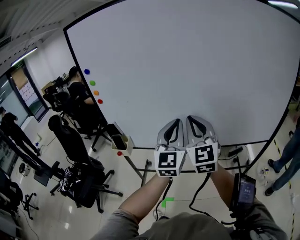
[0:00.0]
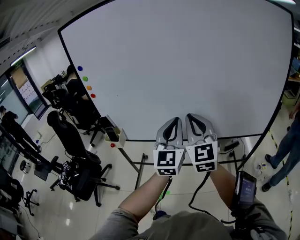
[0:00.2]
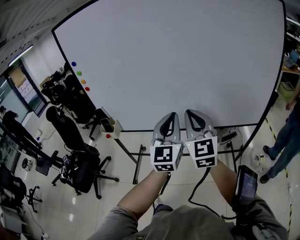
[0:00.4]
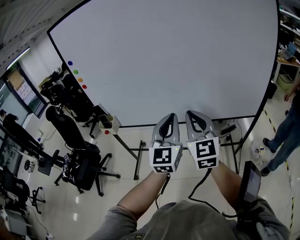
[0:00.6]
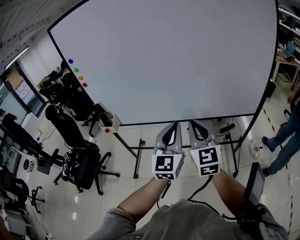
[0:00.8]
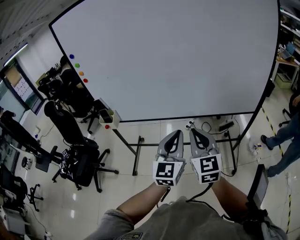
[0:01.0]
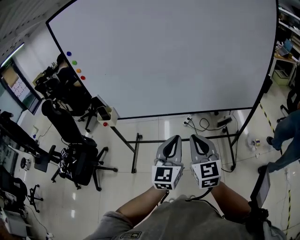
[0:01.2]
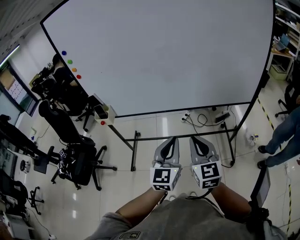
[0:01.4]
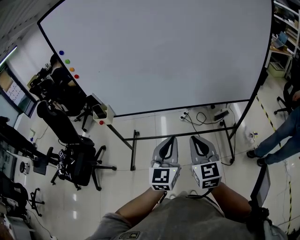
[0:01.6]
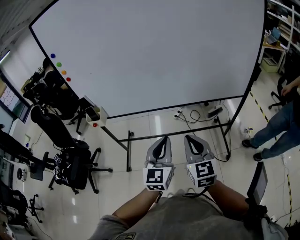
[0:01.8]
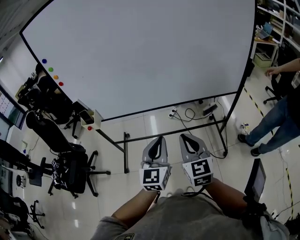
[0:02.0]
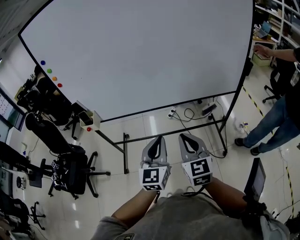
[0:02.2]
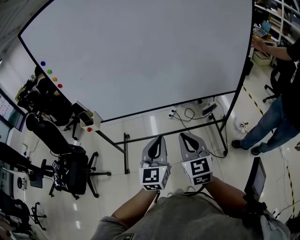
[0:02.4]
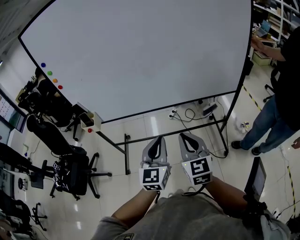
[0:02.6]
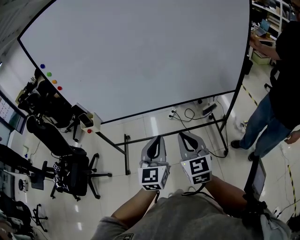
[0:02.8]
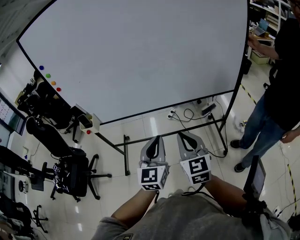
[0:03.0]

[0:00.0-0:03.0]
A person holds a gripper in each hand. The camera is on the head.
0.0 to 1.6 s: Both grippers move backward, downward and to the right, roughly 25 cm. The right gripper rotates roughly 20 degrees.
1.6 to 3.0 s: The grippers move only a little.

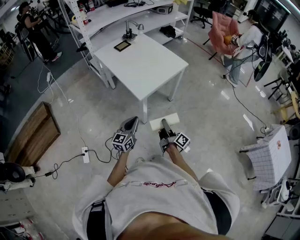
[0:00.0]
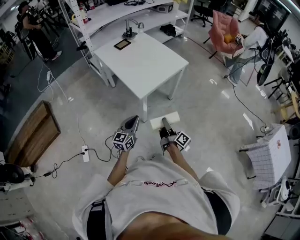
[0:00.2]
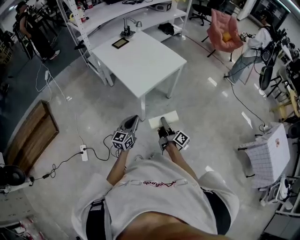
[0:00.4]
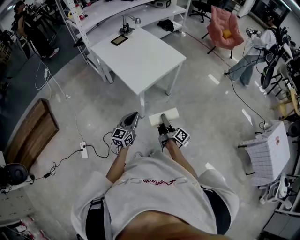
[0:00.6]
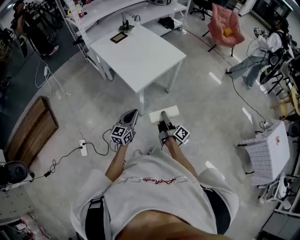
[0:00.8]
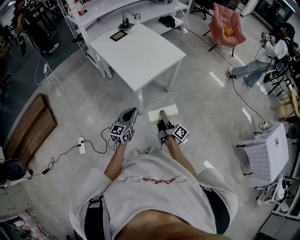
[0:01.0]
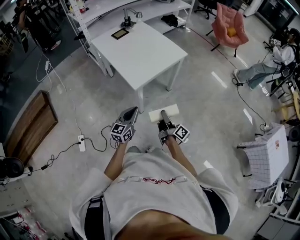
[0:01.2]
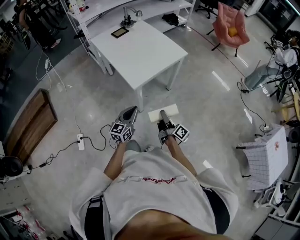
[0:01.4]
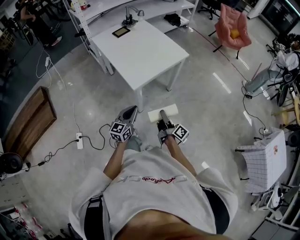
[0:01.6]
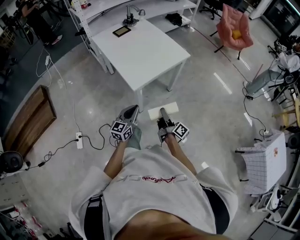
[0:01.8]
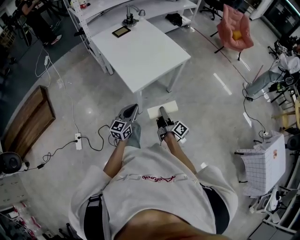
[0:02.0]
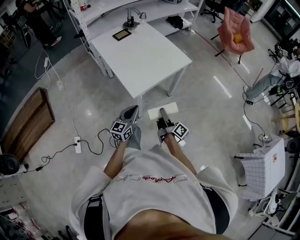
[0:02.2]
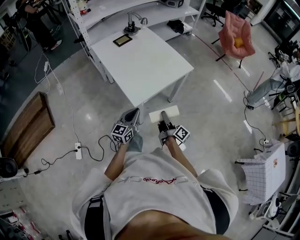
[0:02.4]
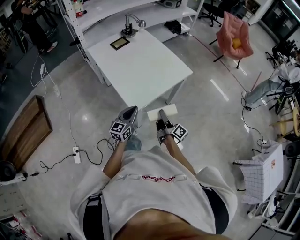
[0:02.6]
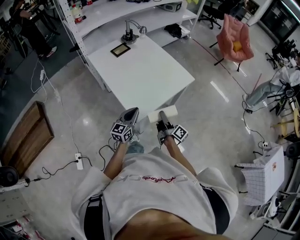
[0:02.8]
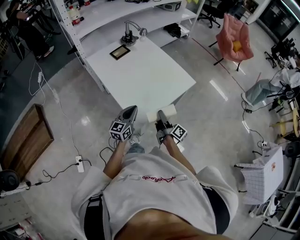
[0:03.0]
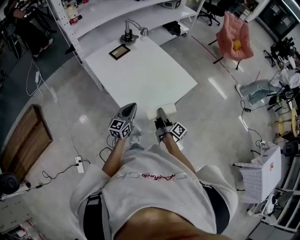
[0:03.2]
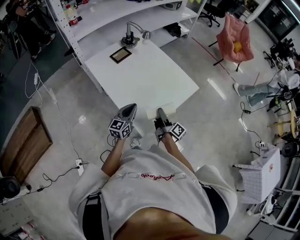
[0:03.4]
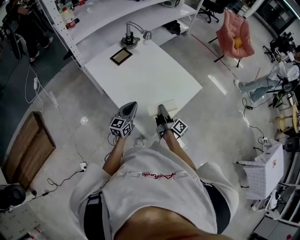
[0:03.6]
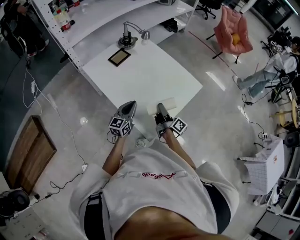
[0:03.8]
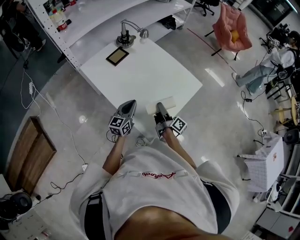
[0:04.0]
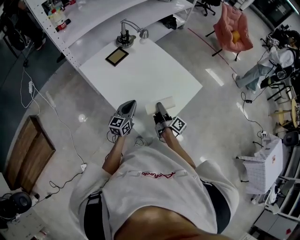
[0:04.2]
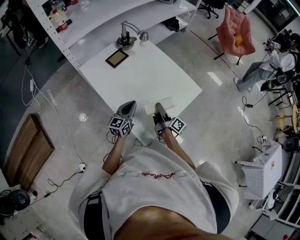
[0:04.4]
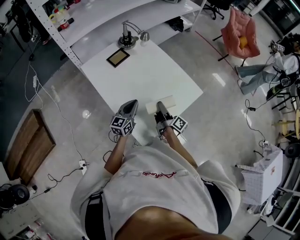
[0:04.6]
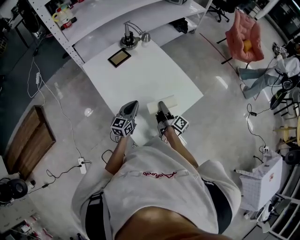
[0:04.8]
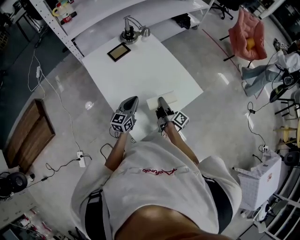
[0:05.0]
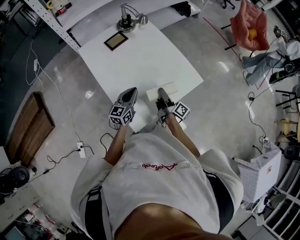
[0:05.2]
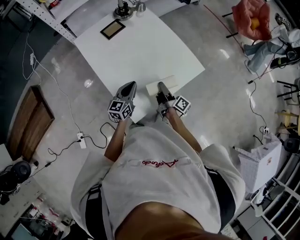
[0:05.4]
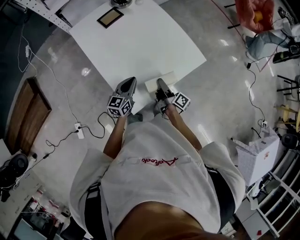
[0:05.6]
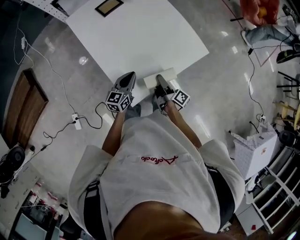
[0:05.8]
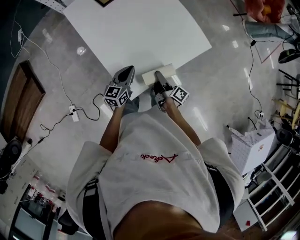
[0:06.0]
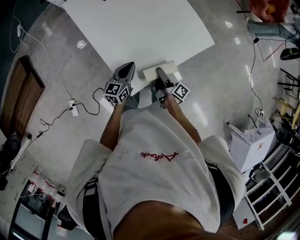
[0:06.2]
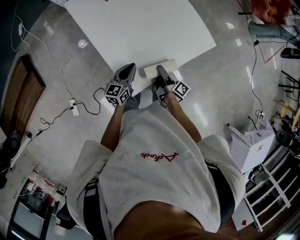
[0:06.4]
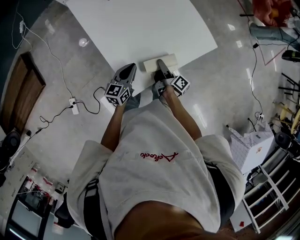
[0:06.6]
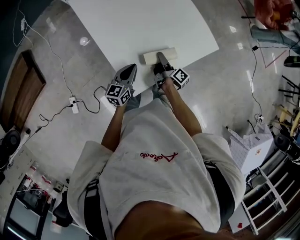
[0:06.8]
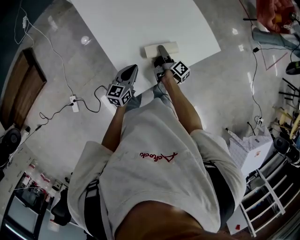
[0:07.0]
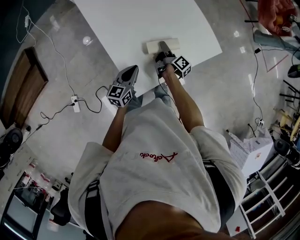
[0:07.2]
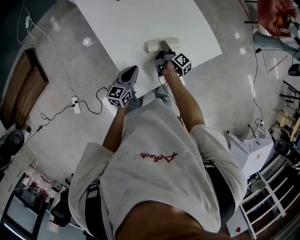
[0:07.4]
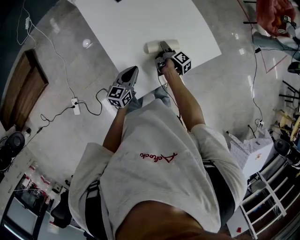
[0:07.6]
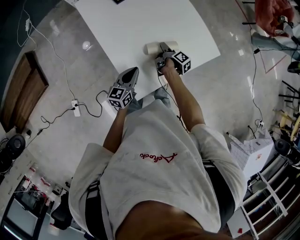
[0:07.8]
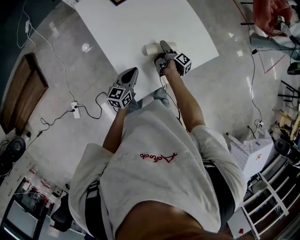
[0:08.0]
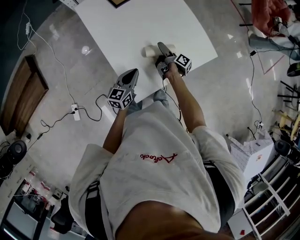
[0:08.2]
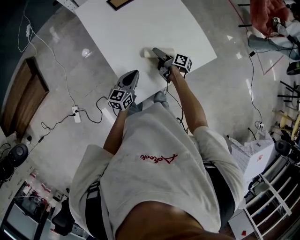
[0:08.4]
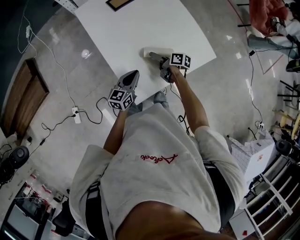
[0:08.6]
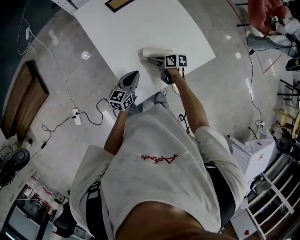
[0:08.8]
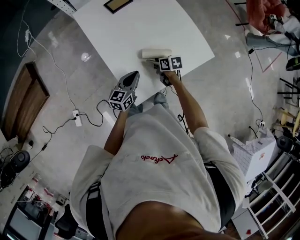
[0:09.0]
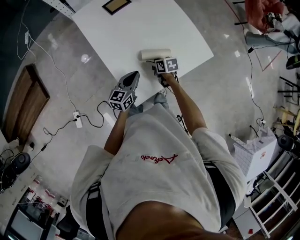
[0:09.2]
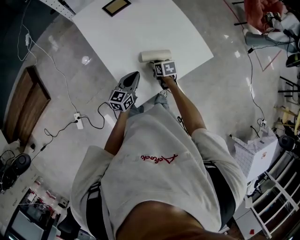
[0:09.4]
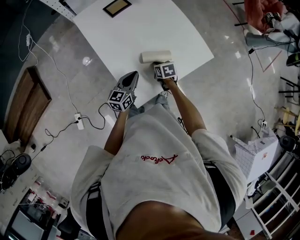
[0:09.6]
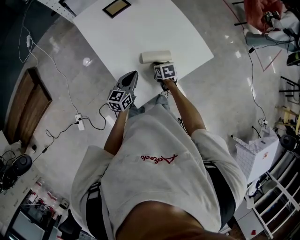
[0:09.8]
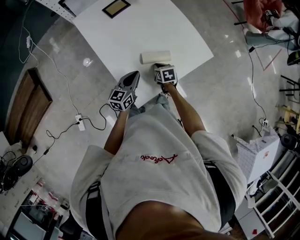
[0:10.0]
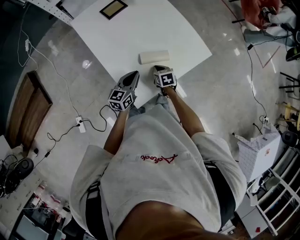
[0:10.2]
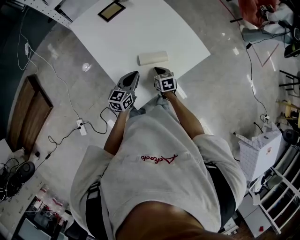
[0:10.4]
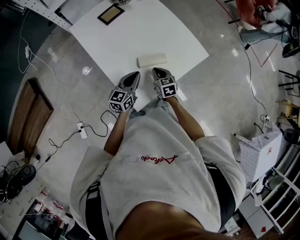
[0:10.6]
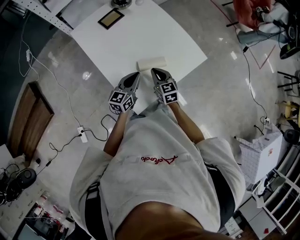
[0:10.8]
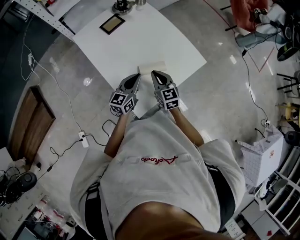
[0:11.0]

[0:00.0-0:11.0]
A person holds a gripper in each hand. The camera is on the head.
0.0 to 1.6 s: The right gripper shifts by some 5 cm, while the left gripper ends up approximately 5 cm from where it was.
1.6 to 3.2 s: Both grippers move forward, about 30 cm.
3.2 to 4.8 s: Both grippers move forward, some 15 cm.
4.8 to 6.2 s: The grippers both shift backward and downward by some 10 cm.
6.2 to 7.8 s: The right gripper is displaced forward by approximately 15 cm, and swivels roughly 20 degrees.
7.8 to 9.4 s: The right gripper ends up some 5 cm from where it was, rotates around the line of its fingers by some 70 degrees, counterclockwise from behind, and opens and closes again.
9.4 to 11.0 s: The right gripper travels upward by approximately 15 cm, and points its fingers some 30 degrees further upward. Meanwhile the left gripper travels upward by roughly 5 cm.

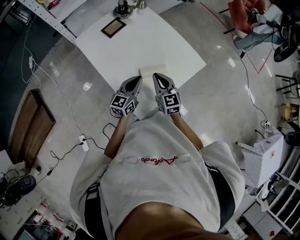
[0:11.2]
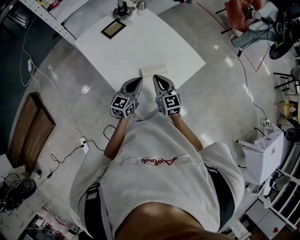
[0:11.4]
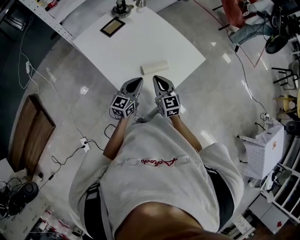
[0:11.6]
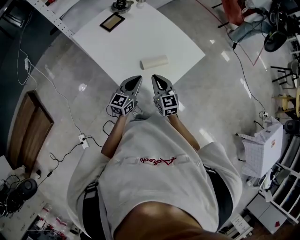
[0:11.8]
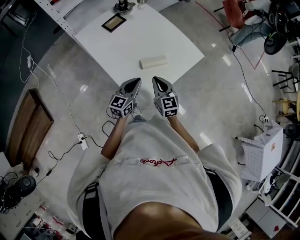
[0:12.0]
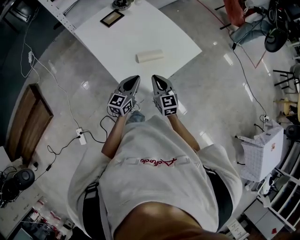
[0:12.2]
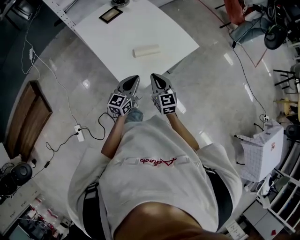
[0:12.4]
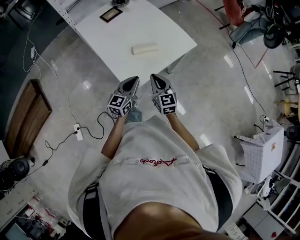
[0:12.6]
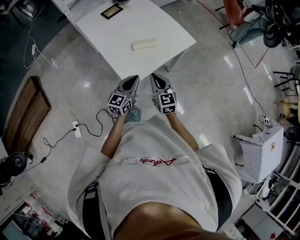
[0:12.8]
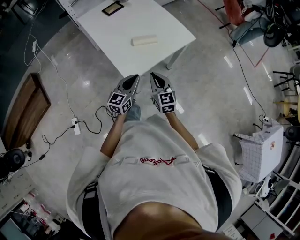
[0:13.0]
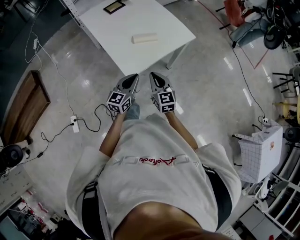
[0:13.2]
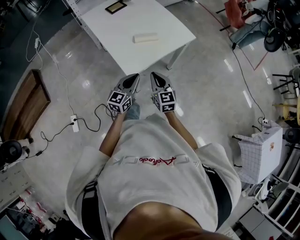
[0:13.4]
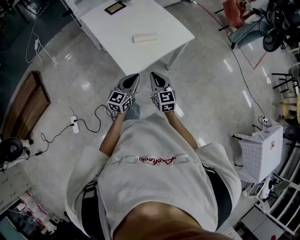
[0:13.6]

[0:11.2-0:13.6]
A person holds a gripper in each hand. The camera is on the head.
11.2 to 12.4 s: The two grippers go approximately 15 cm backward.
12.4 to 13.6 s: The grippers both shift backward by about 10 cm.

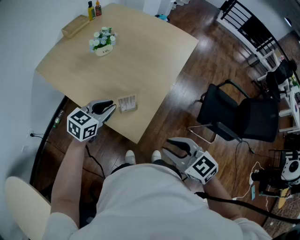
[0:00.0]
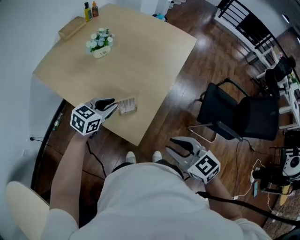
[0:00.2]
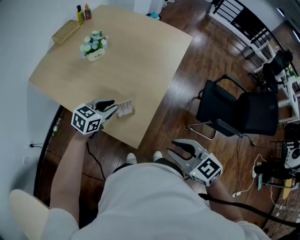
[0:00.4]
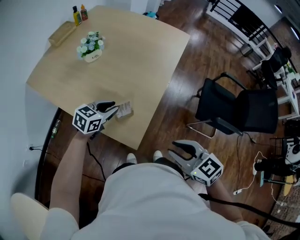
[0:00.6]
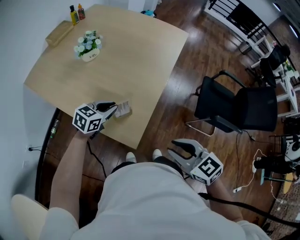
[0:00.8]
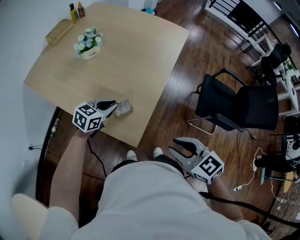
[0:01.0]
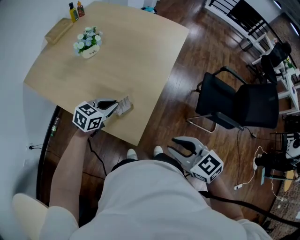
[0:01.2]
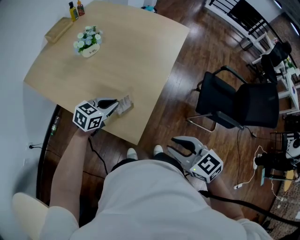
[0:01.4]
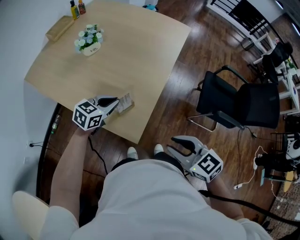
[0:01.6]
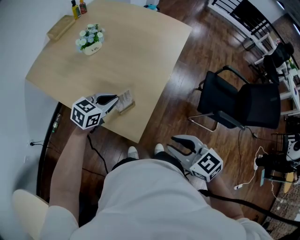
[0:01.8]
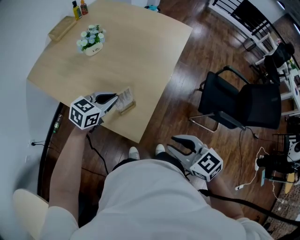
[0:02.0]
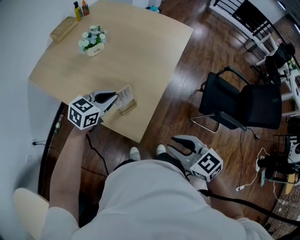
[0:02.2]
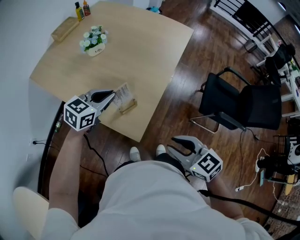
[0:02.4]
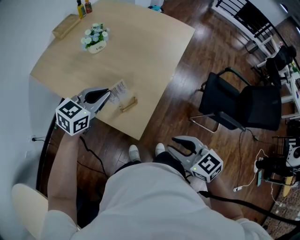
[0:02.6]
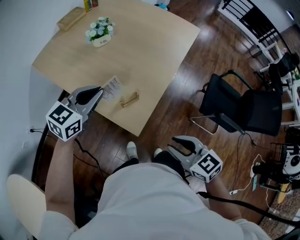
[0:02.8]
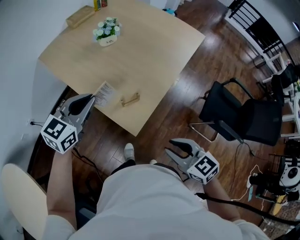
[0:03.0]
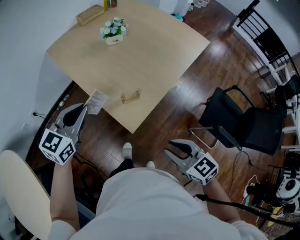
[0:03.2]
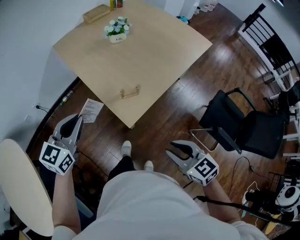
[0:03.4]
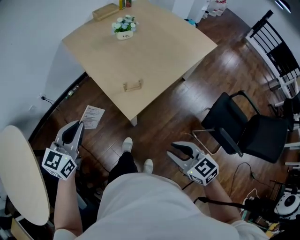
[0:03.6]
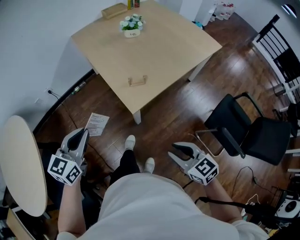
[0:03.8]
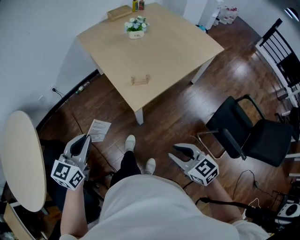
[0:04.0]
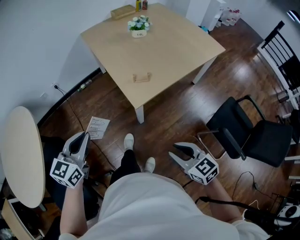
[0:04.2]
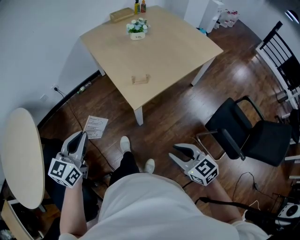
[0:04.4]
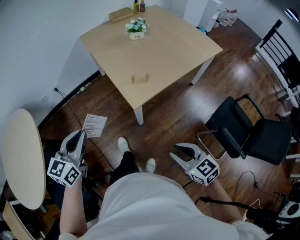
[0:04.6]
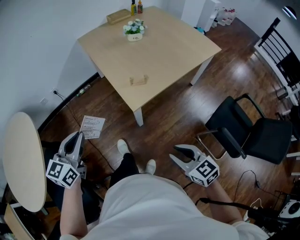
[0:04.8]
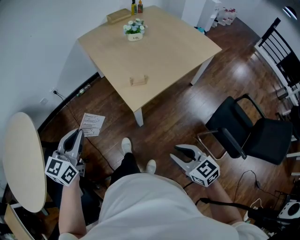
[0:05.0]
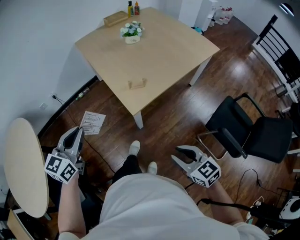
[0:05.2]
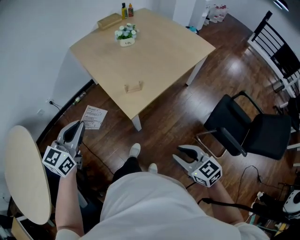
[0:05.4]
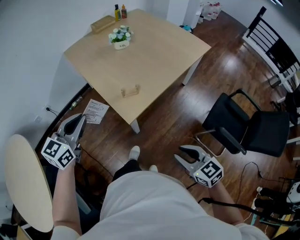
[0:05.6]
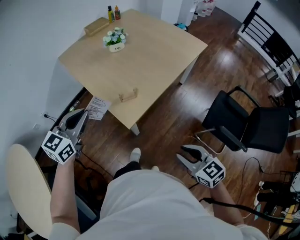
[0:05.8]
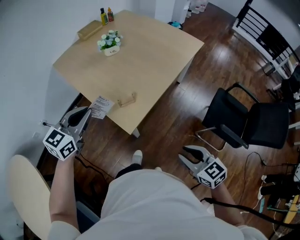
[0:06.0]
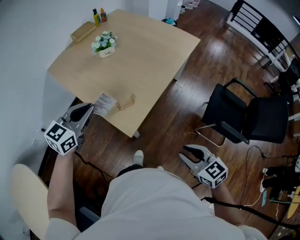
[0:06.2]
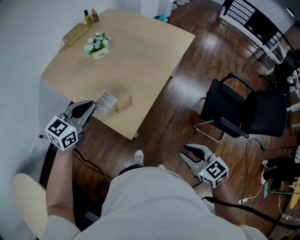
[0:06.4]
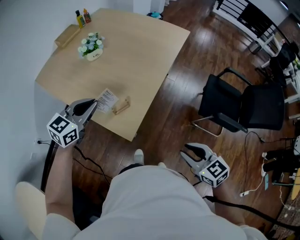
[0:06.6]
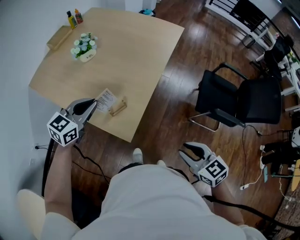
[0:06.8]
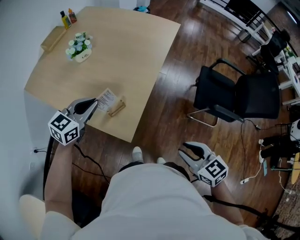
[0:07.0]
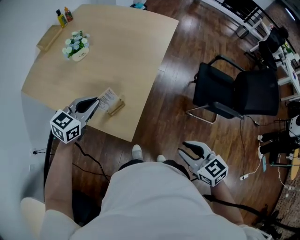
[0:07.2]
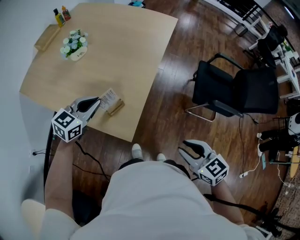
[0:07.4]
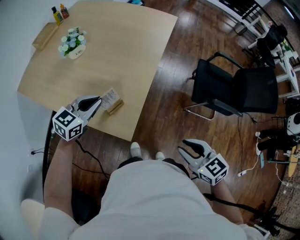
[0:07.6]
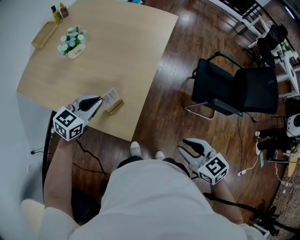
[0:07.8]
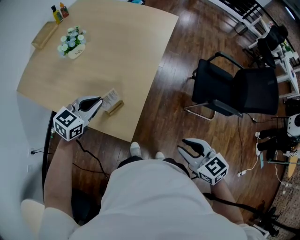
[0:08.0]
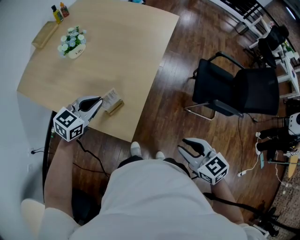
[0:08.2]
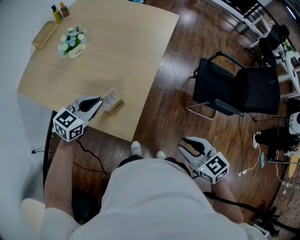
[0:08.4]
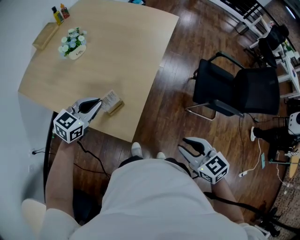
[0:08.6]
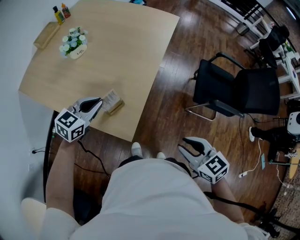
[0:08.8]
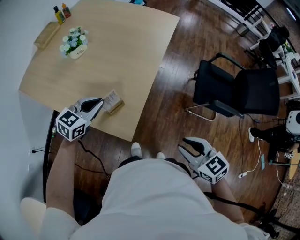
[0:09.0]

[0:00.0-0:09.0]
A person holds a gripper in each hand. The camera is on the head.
0.0 to 1.6 s: The left gripper travels downward by approximately 5 cm.
1.6 to 3.0 s: The left gripper shifts about 20 cm upward, to the left and backward, and changes its angle by about 30 degrees.
3.0 to 4.4 s: The left gripper shifts by roughly 35 cm, and swivels some 40 degrees. The right gripper moves roughly 20 cm.
4.4 to 6.0 s: The right gripper goes roughly 10 cm forward, while the left gripper heads forward and to the right, covering about 25 cm, and turns by some 30 degrees.
6.0 to 7.6 s: The left gripper is displaced forward and downward by about 20 cm, and swivels about 30 degrees. The right gripper changes place by about 5 cm, and changes its angle by roughly 20 degrees.
7.6 to 9.0 s: The grippers stay close to where they were, moving slightly.
